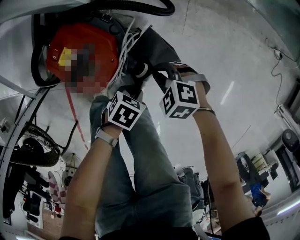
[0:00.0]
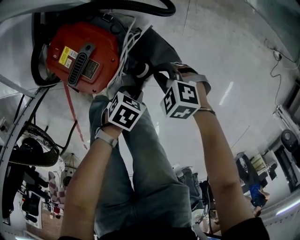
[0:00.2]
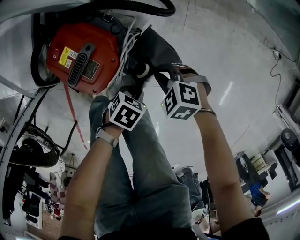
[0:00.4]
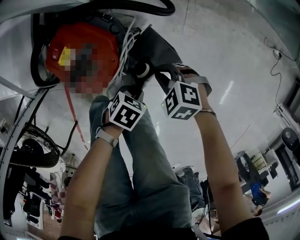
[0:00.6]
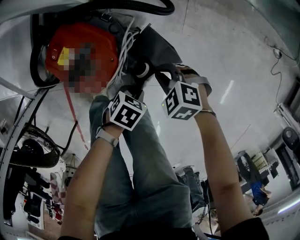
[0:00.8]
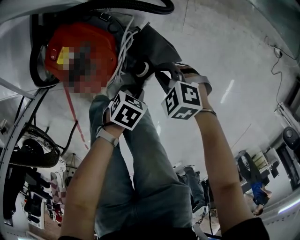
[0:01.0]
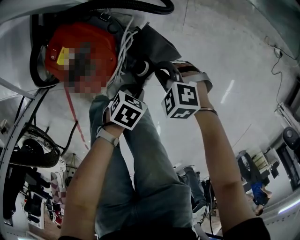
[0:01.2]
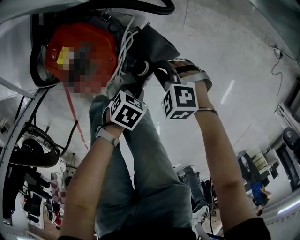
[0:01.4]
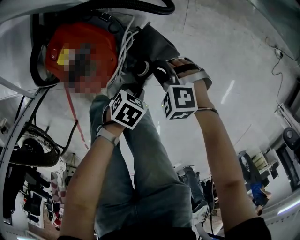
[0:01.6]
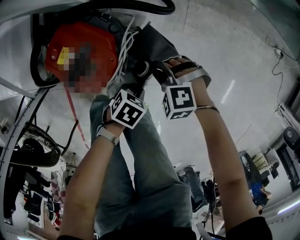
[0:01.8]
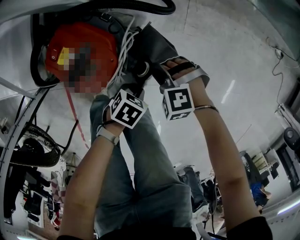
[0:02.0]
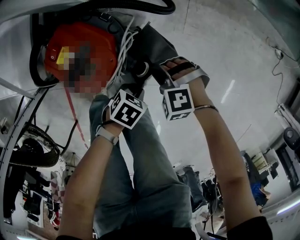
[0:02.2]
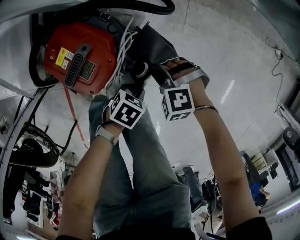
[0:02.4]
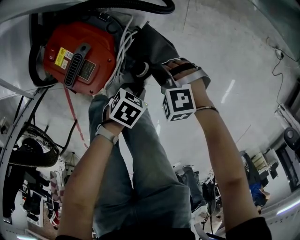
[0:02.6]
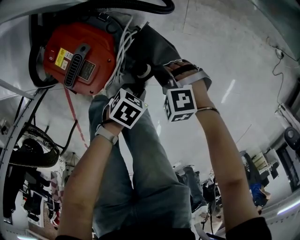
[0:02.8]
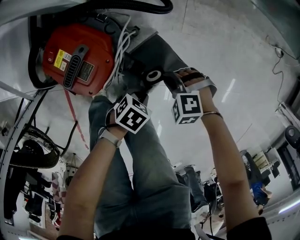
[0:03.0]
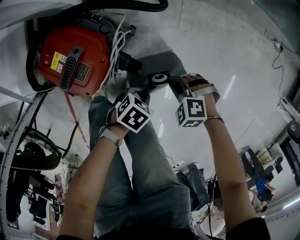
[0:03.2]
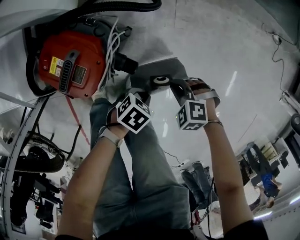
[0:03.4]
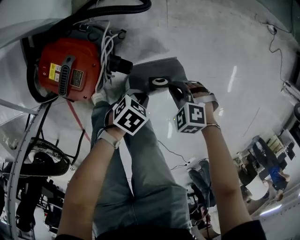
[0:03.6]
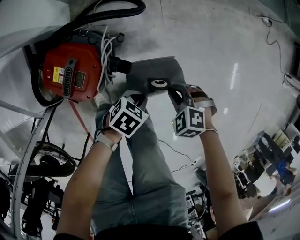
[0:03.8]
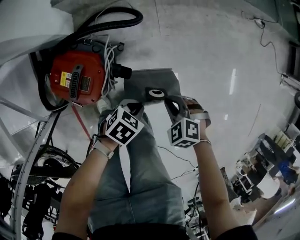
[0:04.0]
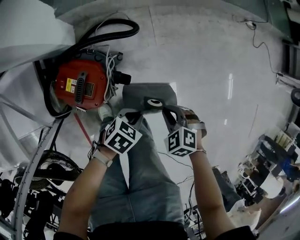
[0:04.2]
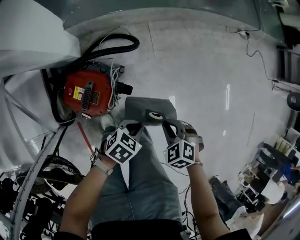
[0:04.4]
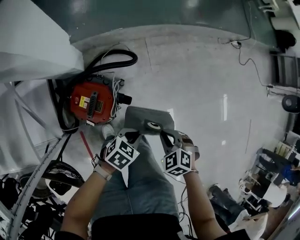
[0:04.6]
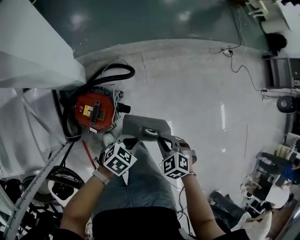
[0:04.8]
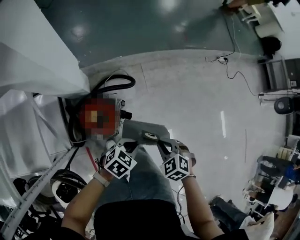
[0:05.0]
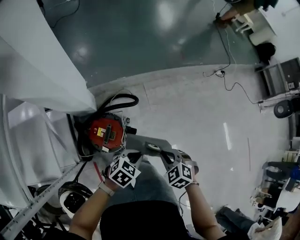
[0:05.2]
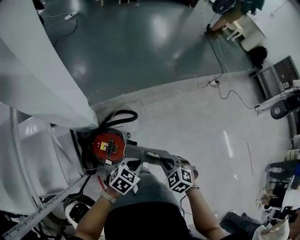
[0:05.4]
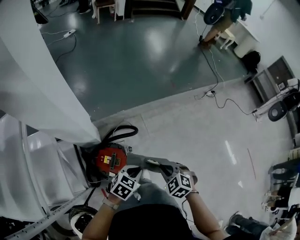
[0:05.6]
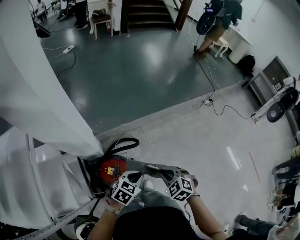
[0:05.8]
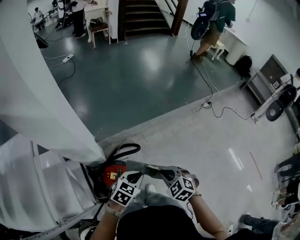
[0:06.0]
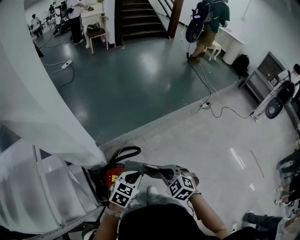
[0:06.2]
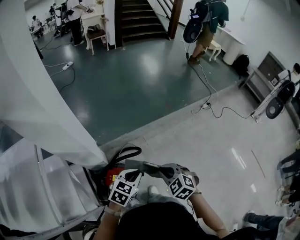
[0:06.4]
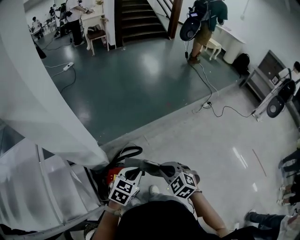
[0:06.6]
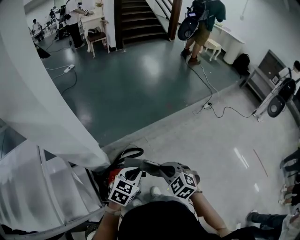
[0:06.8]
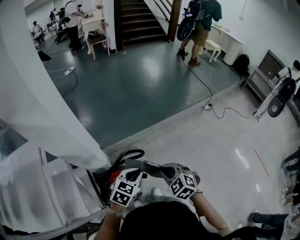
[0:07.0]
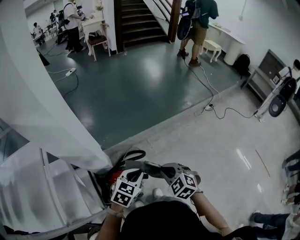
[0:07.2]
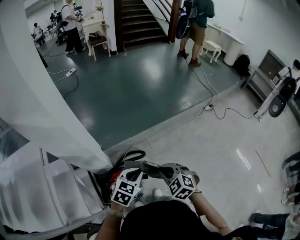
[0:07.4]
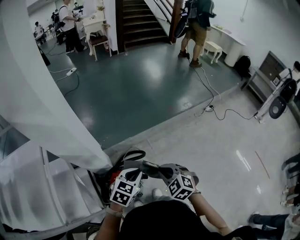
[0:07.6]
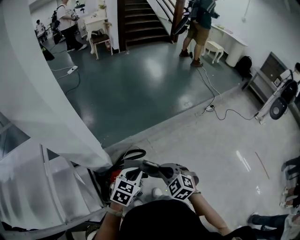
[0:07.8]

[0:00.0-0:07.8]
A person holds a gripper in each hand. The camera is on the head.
0:00.0 to 0:01.6: The grippers stay close to where they were, moving slightly.
0:01.6 to 0:03.2: The right gripper changes place by some 10 cm; the left gripper moves about 5 cm.
0:03.2 to 0:04.6: The two grippers go some 25 cm upward. The left gripper swivels about 20 degrees. The right gripper rolls clockwise, seen from behind, by approximately 40 degrees.
0:04.6 to 0:06.2: The grippers both shift upward by approximately 40 cm. The left gripper changes its angle by roughly 30 degrees. The right gripper swivels approximately 20 degrees.
0:06.2 to 0:07.8: The grippers make only small movements.

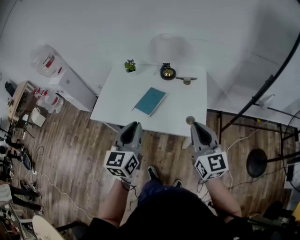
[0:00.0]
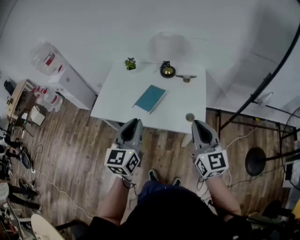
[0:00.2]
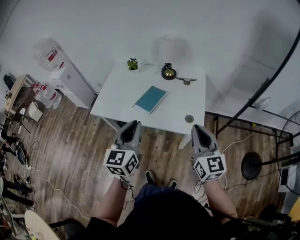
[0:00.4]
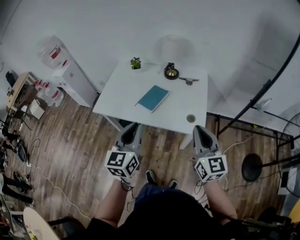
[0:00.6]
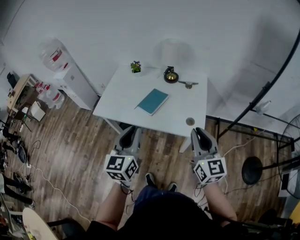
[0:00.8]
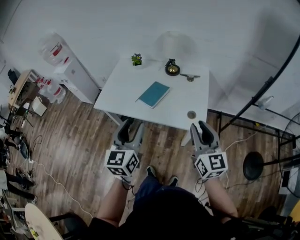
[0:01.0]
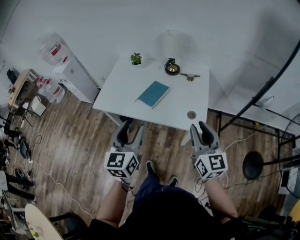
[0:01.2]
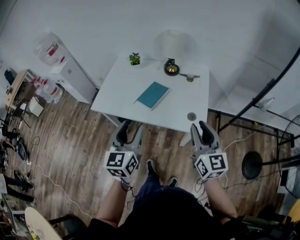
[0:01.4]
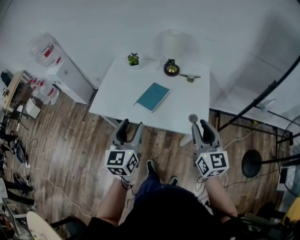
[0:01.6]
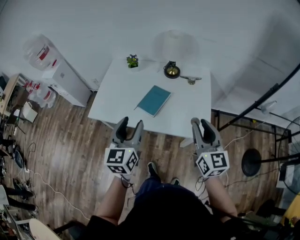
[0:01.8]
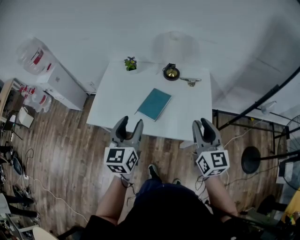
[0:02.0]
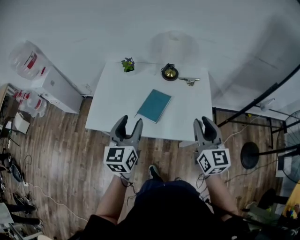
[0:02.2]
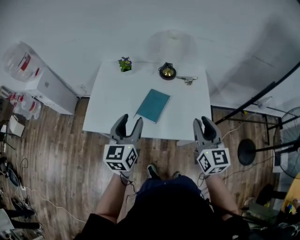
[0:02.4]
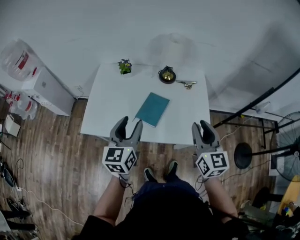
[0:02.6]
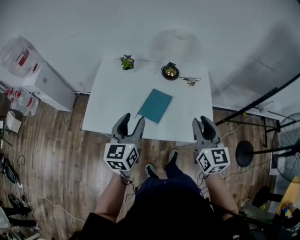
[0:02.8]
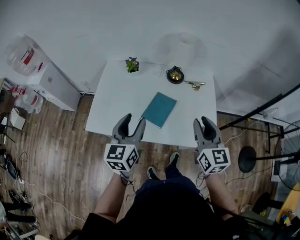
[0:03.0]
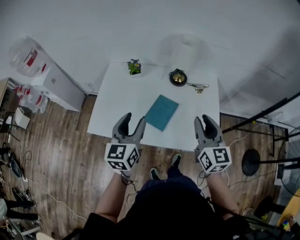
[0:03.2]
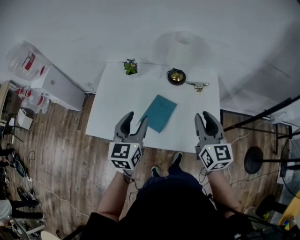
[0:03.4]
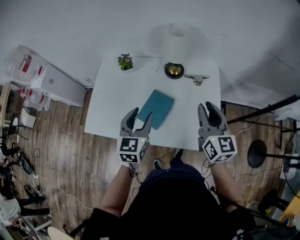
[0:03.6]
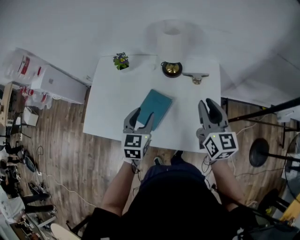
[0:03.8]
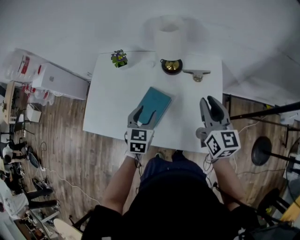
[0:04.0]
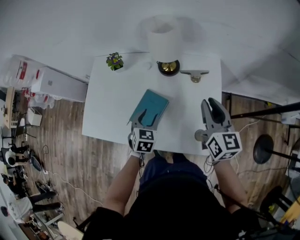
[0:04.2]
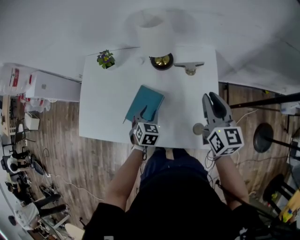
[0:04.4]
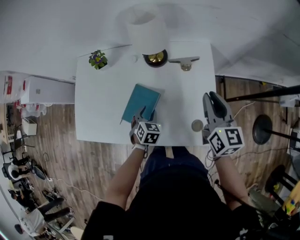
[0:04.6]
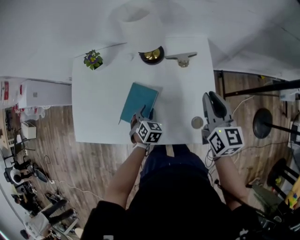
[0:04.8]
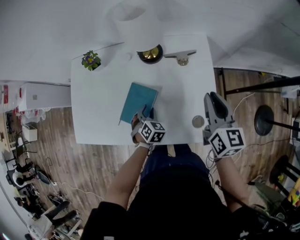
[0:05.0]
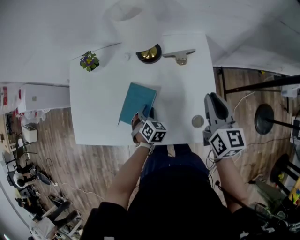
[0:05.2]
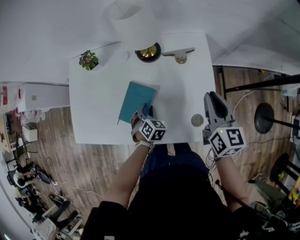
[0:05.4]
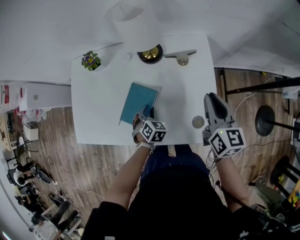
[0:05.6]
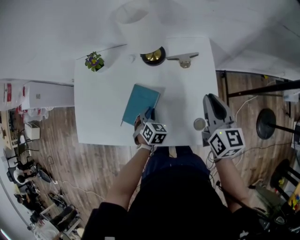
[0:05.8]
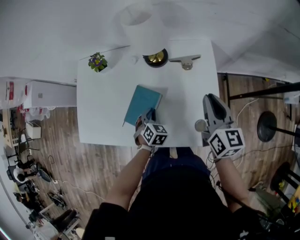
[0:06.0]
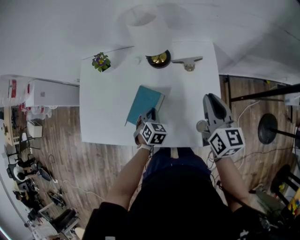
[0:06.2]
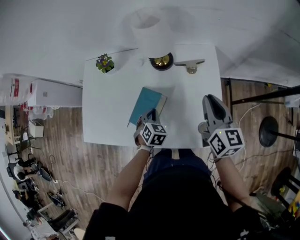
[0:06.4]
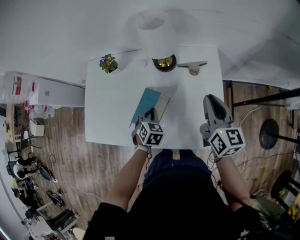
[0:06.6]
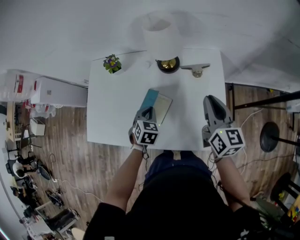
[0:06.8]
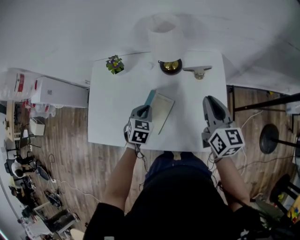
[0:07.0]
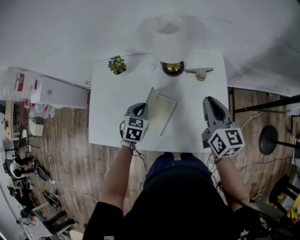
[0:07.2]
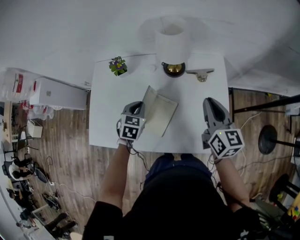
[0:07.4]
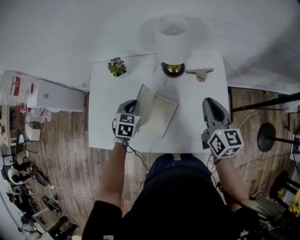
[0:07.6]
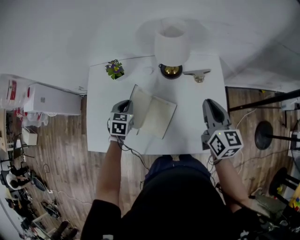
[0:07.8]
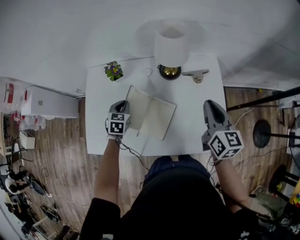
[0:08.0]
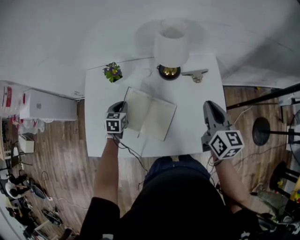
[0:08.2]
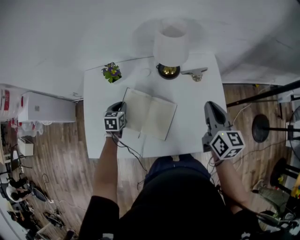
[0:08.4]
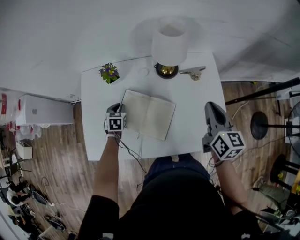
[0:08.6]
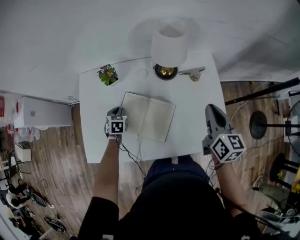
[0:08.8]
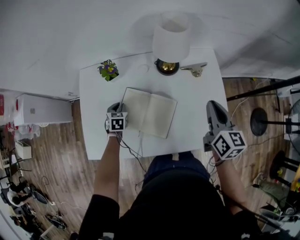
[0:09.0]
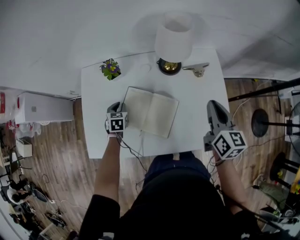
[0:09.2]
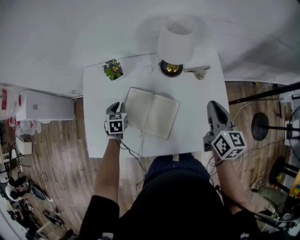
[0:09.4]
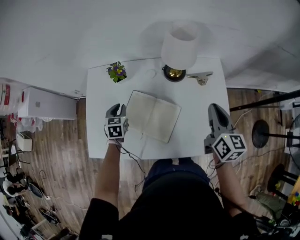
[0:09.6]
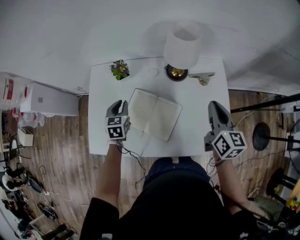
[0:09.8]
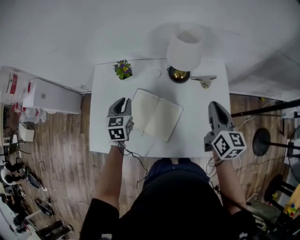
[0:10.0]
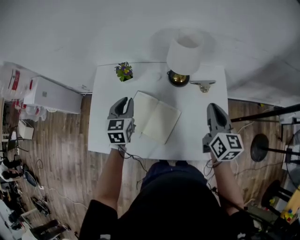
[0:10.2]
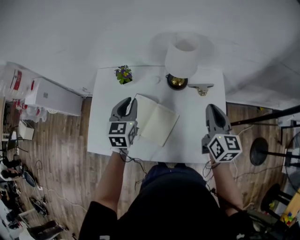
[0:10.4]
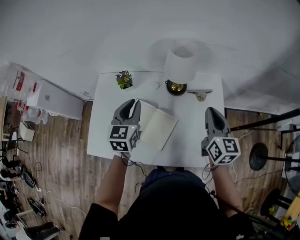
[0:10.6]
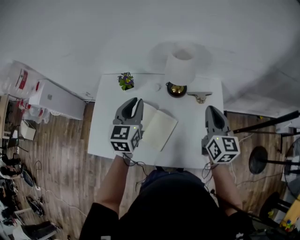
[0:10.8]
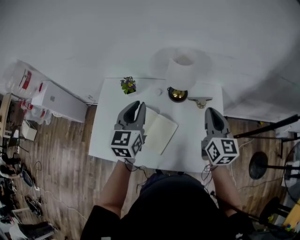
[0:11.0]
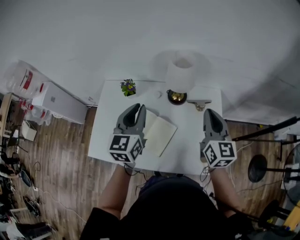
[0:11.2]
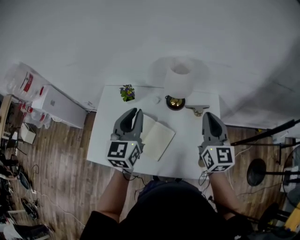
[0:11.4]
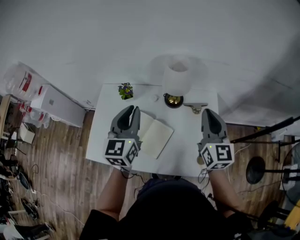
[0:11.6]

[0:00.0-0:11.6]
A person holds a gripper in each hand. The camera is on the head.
0:00.0 to 0:01.4: The right gripper opens, while the left gripper ends up approximately 5 cm from where it was, and opens.
0:01.4 to 0:02.8: Both grippers move forward and to the left, some 25 cm.
0:02.8 to 0:04.4: The right gripper travels forward, to the right and downward by some 30 cm, while the left gripper heads downward, to the right and forward, covering some 35 cm, and tilts its fingers approximately 40 degrees downward.
0:04.4 to 0:05.8: The right gripper shifts by approximately 5 cm. Meanwhile the left gripper goes some 5 cm downward, and closes.
0:05.8 to 0:07.2: The right gripper moves to the left, approximately 10 cm. Meanwhile the left gripper shifts some 15 cm upward, to the left and forward.
0:07.2 to 0:08.8: The left gripper heads to the left and downward, covering approximately 20 cm.
0:08.8 to 0:10.2: The left gripper goes approximately 20 cm upward, and changes its angle by approximately 30 degrees.
0:10.2 to 0:11.6: The right gripper goes about 10 cm upward, and swivels approximately 20 degrees. The left gripper goes about 20 cm upward and to the right, and swivels roughly 20 degrees.

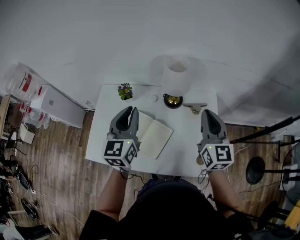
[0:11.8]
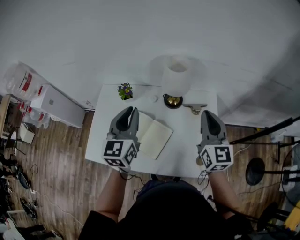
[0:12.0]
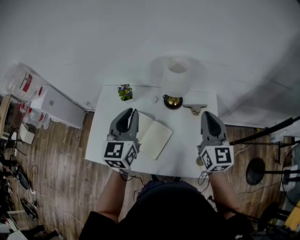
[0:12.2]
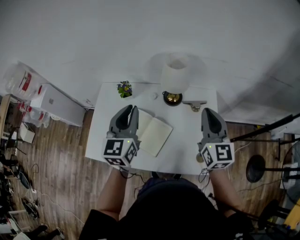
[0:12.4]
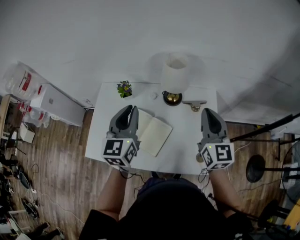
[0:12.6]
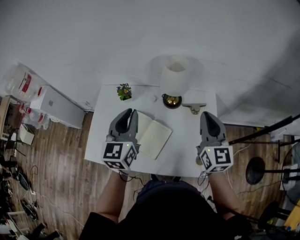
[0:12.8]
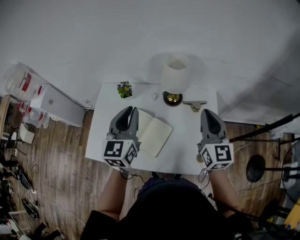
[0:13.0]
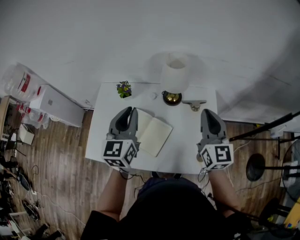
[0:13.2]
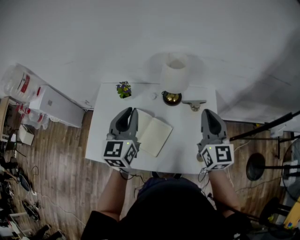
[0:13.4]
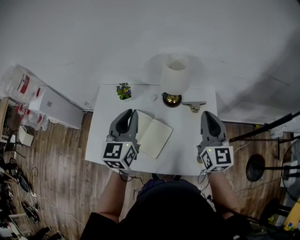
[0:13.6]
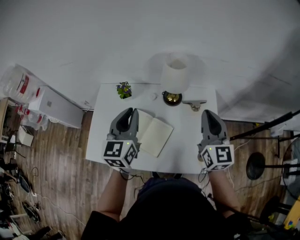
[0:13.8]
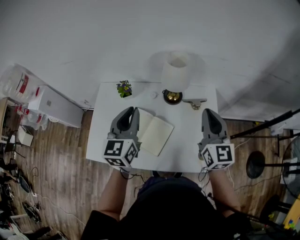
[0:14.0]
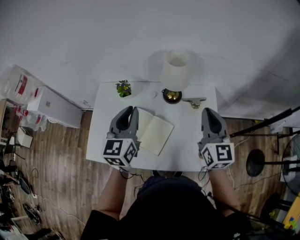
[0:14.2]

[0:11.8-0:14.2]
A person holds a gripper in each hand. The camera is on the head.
0:11.8 to 0:13.0: The two grippers keep their place.
0:13.0 to 0:14.2: The grippers move only a little.

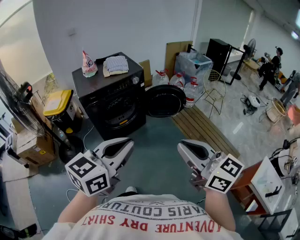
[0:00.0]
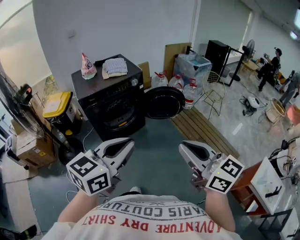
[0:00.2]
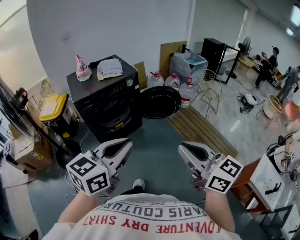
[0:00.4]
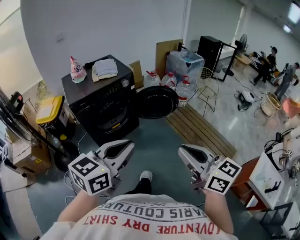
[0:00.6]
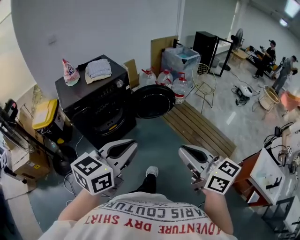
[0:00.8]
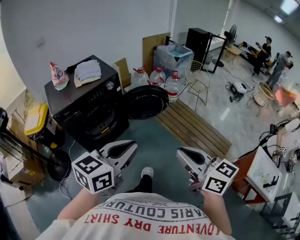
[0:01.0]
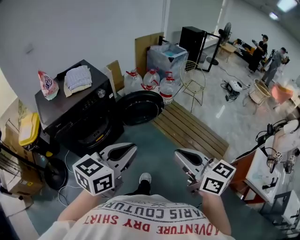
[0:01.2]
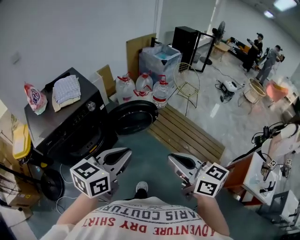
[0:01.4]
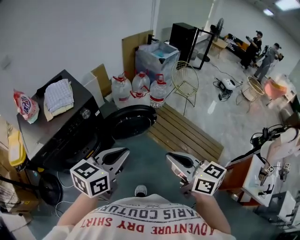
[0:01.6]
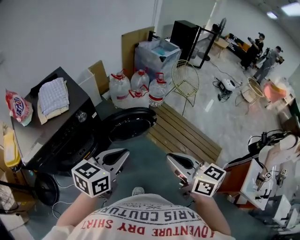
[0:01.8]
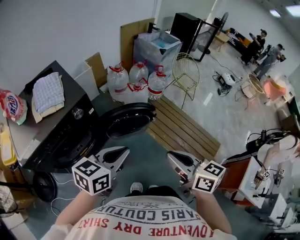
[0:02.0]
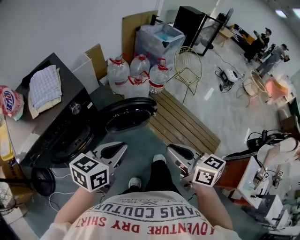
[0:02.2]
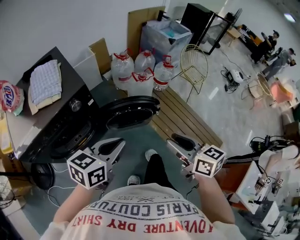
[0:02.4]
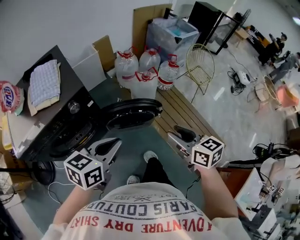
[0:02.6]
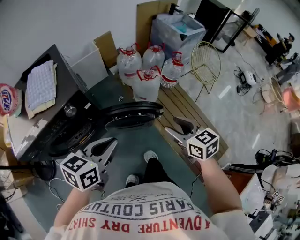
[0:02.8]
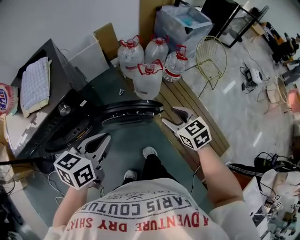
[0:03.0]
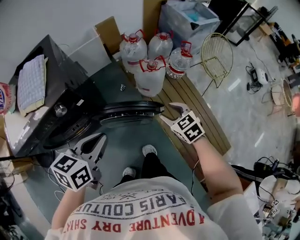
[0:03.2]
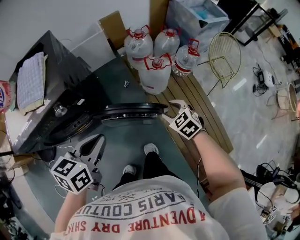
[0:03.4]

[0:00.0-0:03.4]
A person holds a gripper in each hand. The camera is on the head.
0:00.0 to 0:01.6: Both grippers travel together forward, some 35 cm. The right gripper changes its angle by about 20 degrees.
0:01.6 to 0:03.4: The left gripper travels forward and downward by about 30 cm, and rotates about 40 degrees; the right gripper is displaced forward and downward by about 50 cm, tilts its fingers roughly 40 degrees downward, and opens up.
